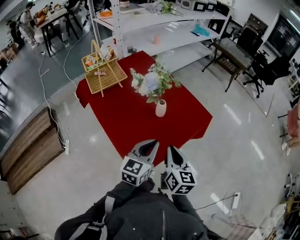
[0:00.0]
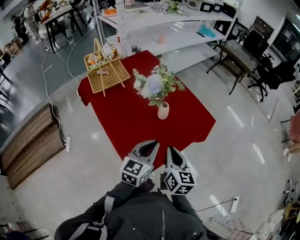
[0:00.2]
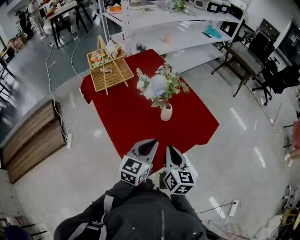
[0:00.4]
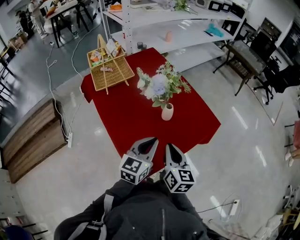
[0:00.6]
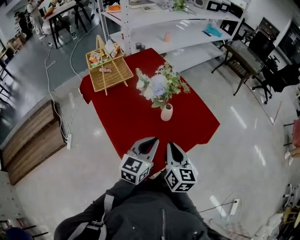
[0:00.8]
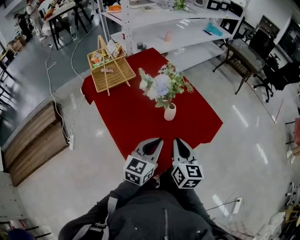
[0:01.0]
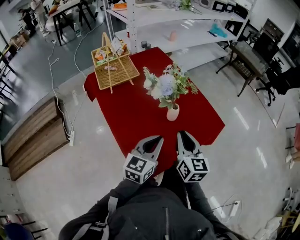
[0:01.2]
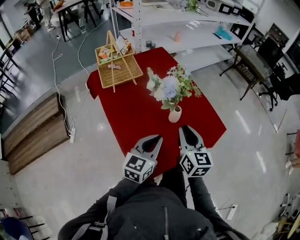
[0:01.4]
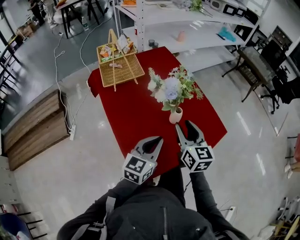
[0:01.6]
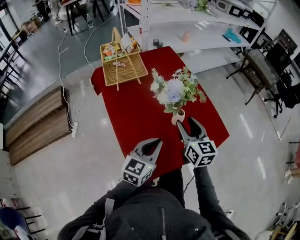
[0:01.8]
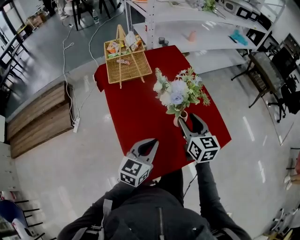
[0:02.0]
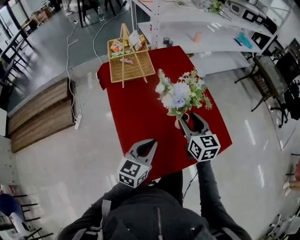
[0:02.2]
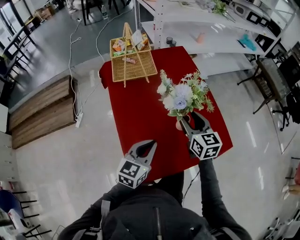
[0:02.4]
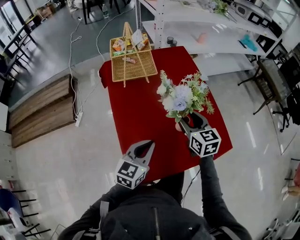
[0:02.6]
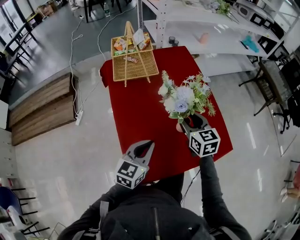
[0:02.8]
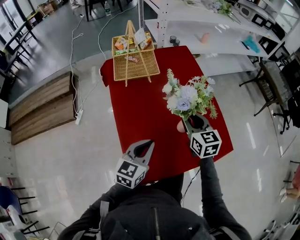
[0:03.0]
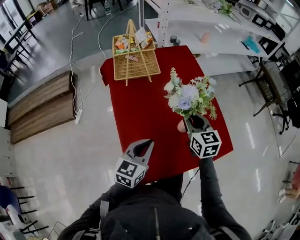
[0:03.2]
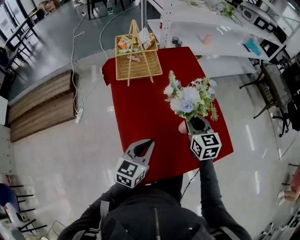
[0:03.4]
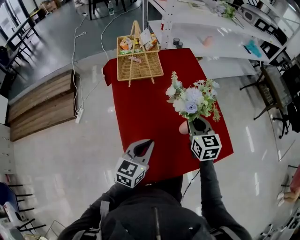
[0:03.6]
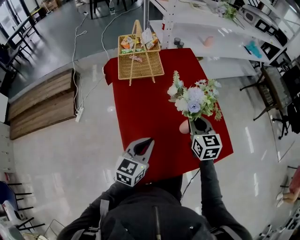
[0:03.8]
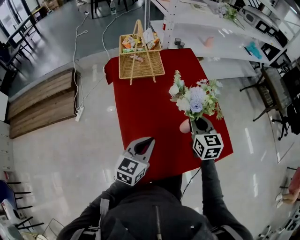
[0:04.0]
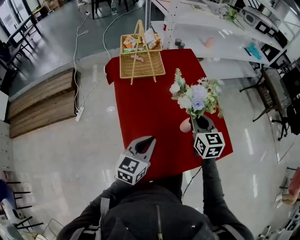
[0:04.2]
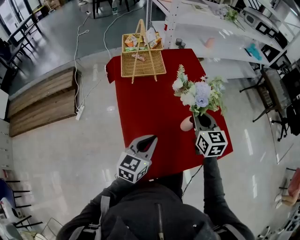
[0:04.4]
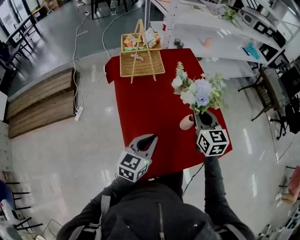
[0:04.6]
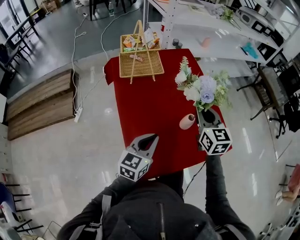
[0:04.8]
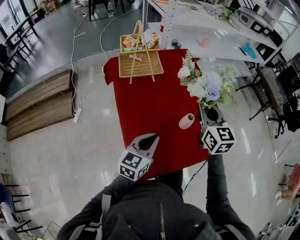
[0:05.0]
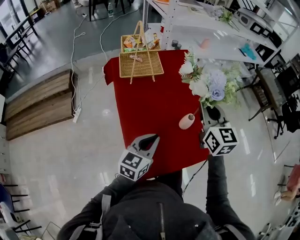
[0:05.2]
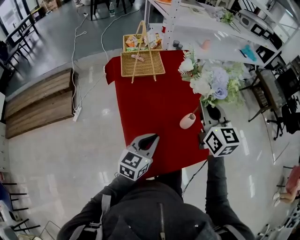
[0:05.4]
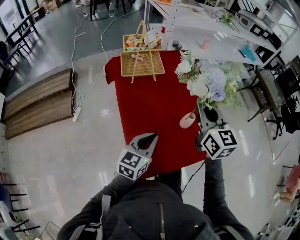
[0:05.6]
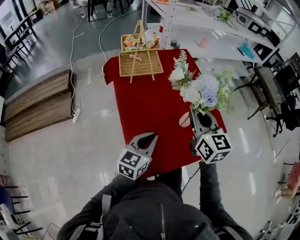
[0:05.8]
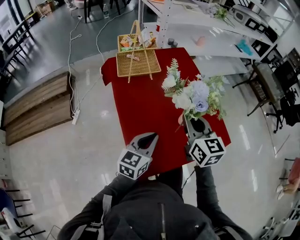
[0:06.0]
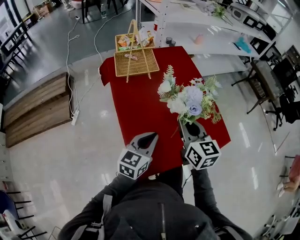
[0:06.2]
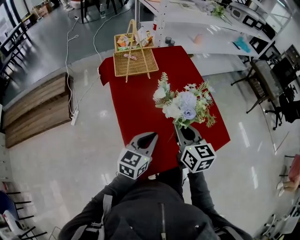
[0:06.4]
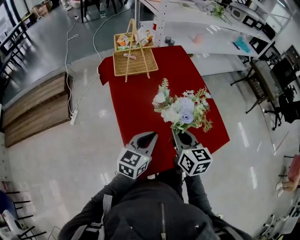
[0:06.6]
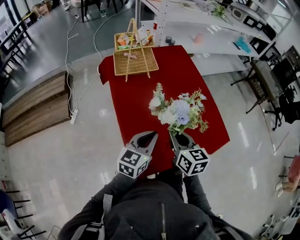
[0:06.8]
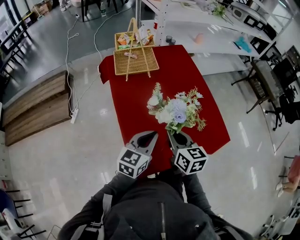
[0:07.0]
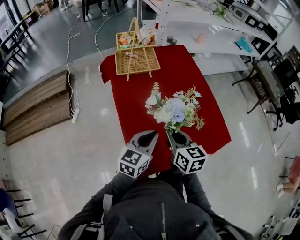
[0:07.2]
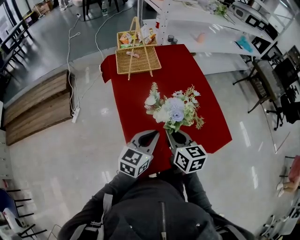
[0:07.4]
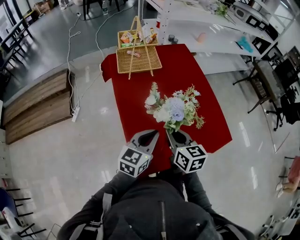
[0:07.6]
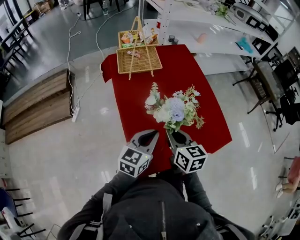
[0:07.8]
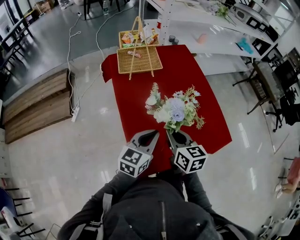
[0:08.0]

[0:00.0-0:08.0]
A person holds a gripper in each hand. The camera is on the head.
0:00.0 to 0:01.6: The left gripper heads forward, covering approximately 5 cm; the right gripper moves forward, roughly 15 cm, turns by approximately 20 degrees, and opens.
0:01.6 to 0:03.2: The left gripper heads to the left, covering approximately 5 cm, while the right gripper shifts some 10 cm forward, and turns by some 20 degrees.
0:03.2 to 0:04.8: The right gripper is displaced upward by roughly 5 cm.
0:04.8 to 0:06.4: The right gripper heads backward and to the left, covering about 10 cm, and goes upward and returns, some 5 cm each way.
0:06.4 to 0:08.0: The right gripper moves approximately 5 cm.

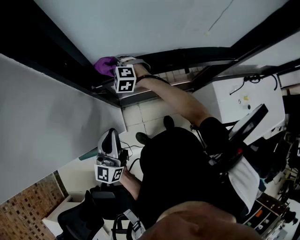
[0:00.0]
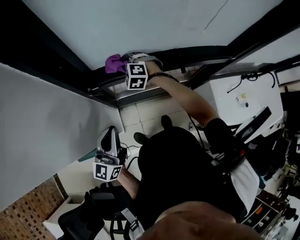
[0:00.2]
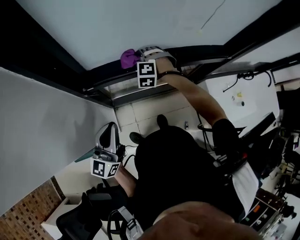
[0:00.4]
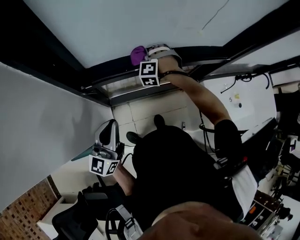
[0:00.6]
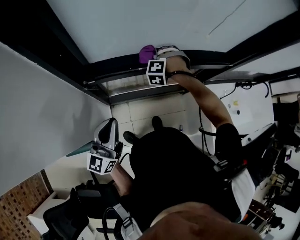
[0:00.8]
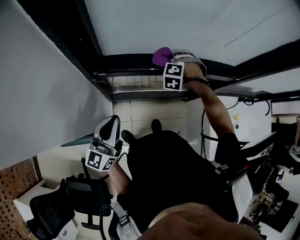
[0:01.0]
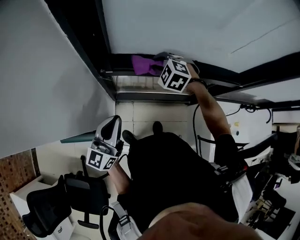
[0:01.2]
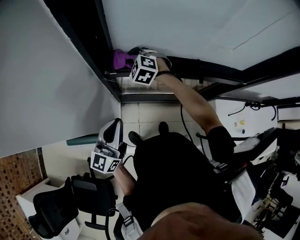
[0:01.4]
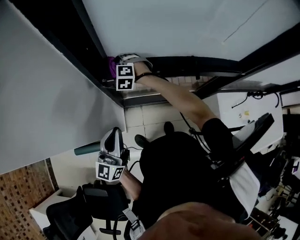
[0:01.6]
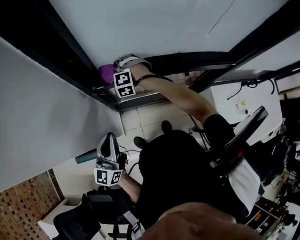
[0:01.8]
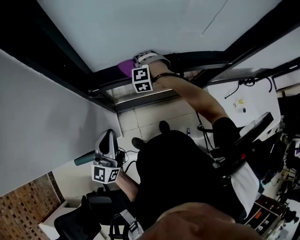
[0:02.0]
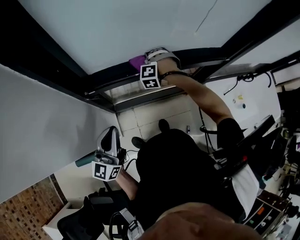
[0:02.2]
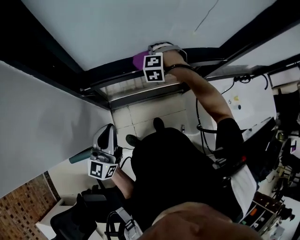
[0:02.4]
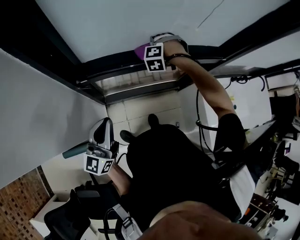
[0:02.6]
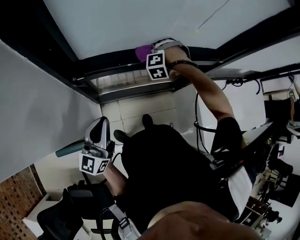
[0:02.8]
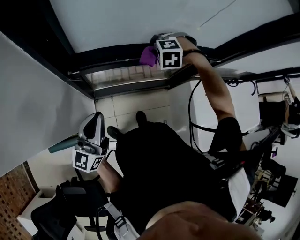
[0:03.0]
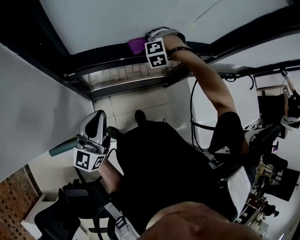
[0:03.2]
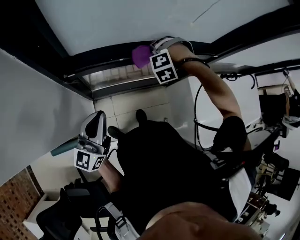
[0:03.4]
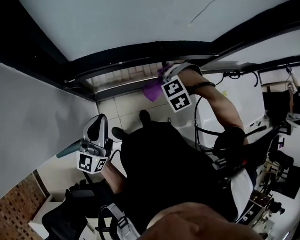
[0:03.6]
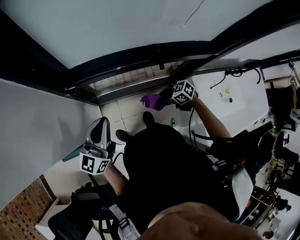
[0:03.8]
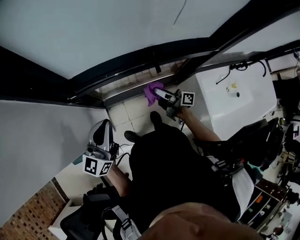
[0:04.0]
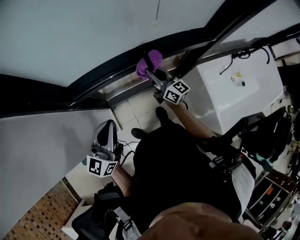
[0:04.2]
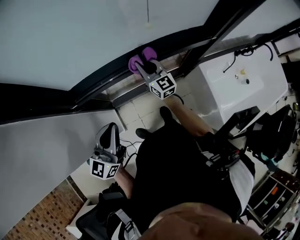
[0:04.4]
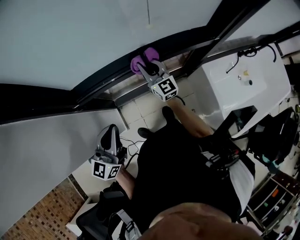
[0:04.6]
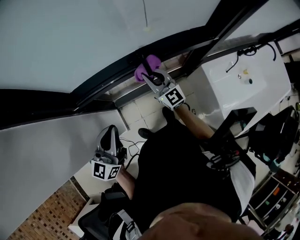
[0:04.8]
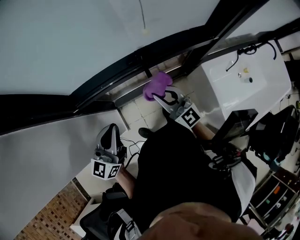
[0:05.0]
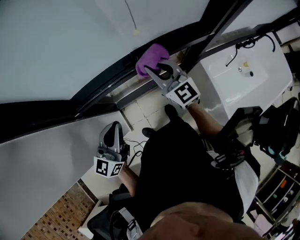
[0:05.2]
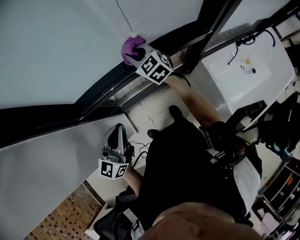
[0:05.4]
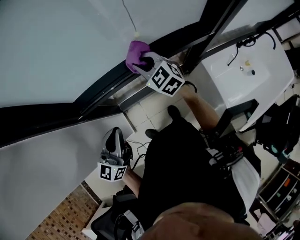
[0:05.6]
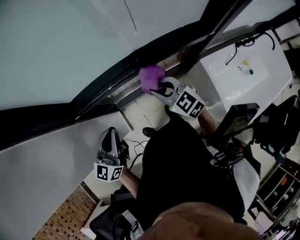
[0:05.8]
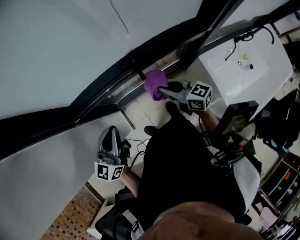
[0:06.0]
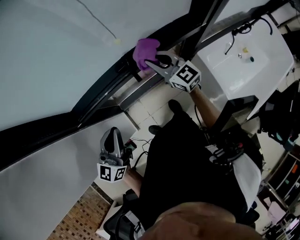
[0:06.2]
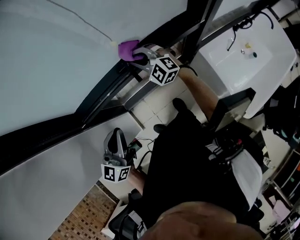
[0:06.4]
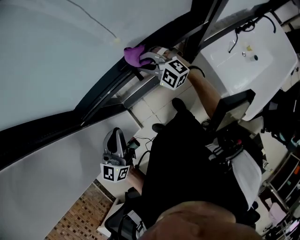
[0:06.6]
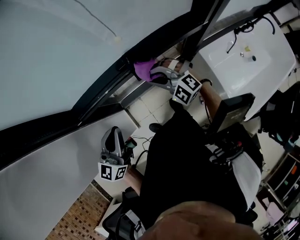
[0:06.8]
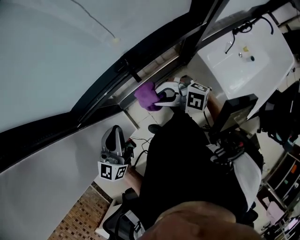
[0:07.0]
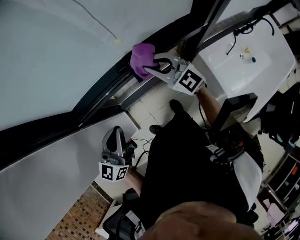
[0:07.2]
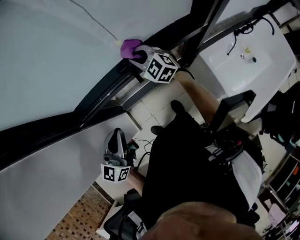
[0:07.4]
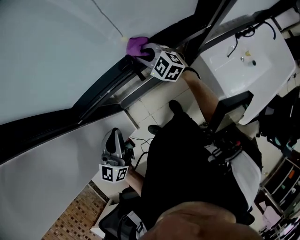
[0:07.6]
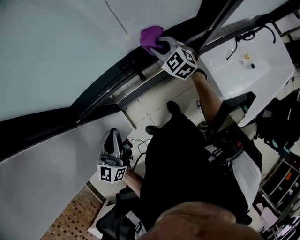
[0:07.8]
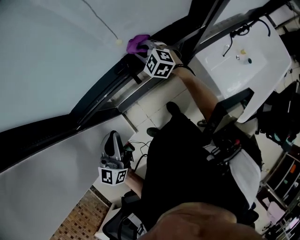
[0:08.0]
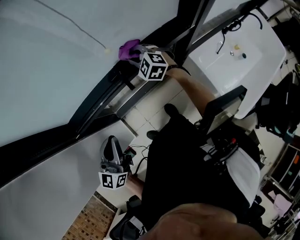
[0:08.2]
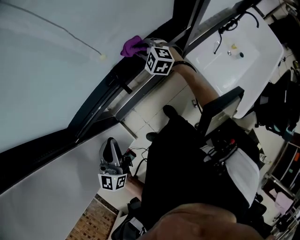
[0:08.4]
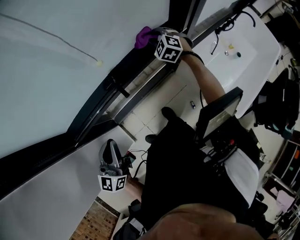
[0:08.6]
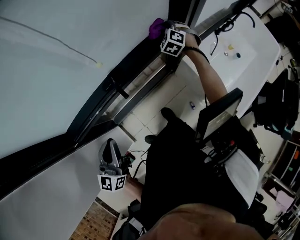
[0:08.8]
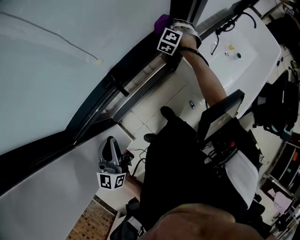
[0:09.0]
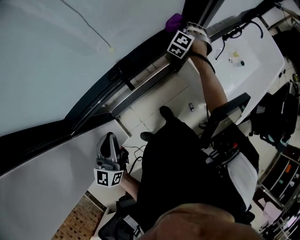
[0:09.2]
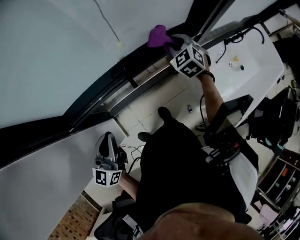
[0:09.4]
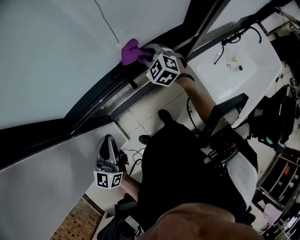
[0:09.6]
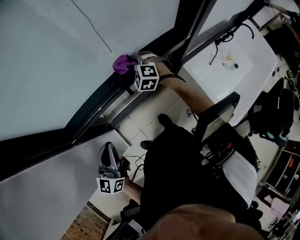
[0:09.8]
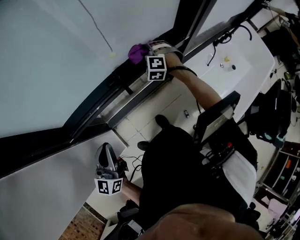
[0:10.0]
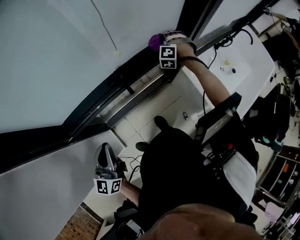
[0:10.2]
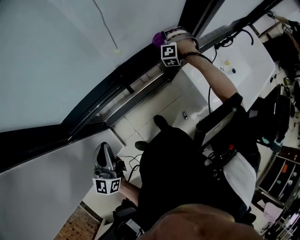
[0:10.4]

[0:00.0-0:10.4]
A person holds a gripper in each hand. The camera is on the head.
0:01.4 to 0:03.0: The left gripper moves approximately 5 cm, while the right gripper ends up about 25 cm from where it was, and changes its angle by some 40 degrees.
0:03.0 to 0:04.4: The left gripper ends up roughly 10 cm from where it was, while the right gripper goes downward and returns, approximately 10 cm each way, and tips its fingers upward by roughly 70 degrees.
0:04.4 to 0:06.0: The right gripper goes forward and backward, roughly 20 cm each way, reversing 2 times, and rotates approximately 30 degrees.
0:06.0 to 0:07.4: The right gripper moves forward and backward over roughly 20 cm, changing direction 2 times, and rolls counterclockwise, seen from behind, by approximately 50 degrees.
0:07.4 to 0:09.0: The right gripper ends up some 35 cm from where it was, and rotates some 70 degrees.
0:09.0 to 0:10.4: The right gripper reaches roughly 5 cm upward, then returns, and rotates around the line of its fingers by about 40 degrees, counterclockwise from behind, while the left gripper moves about 5 cm.

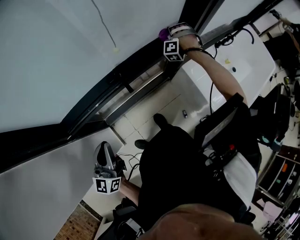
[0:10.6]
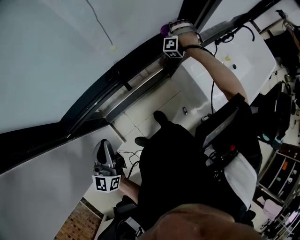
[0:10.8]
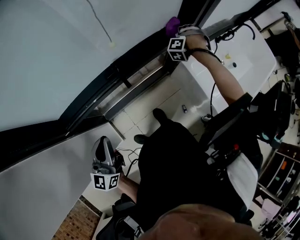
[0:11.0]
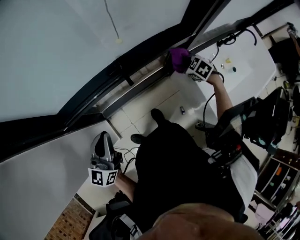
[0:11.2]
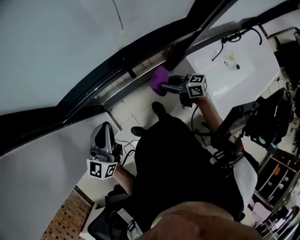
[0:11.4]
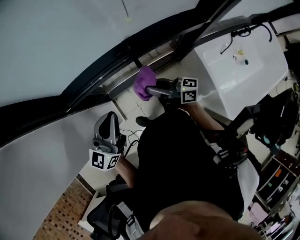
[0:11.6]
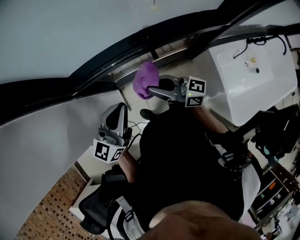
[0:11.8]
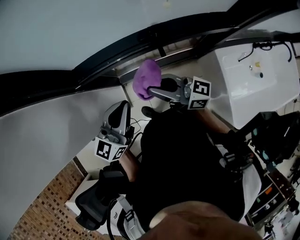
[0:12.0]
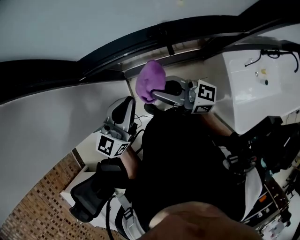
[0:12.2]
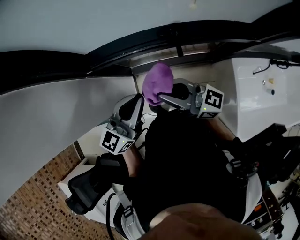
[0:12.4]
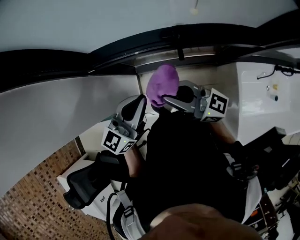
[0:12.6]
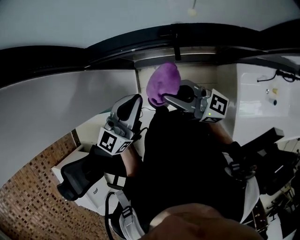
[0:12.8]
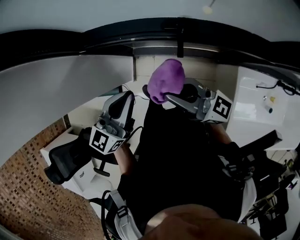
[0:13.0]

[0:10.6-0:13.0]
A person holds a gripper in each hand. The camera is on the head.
0:10.6 to 0:11.8: The right gripper shifts by about 50 cm, and angles its fingers upward, by roughly 50 degrees.
0:11.8 to 0:13.0: The right gripper ends up roughly 5 cm from where it was.

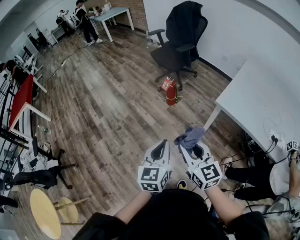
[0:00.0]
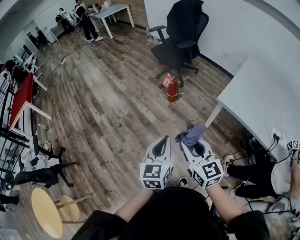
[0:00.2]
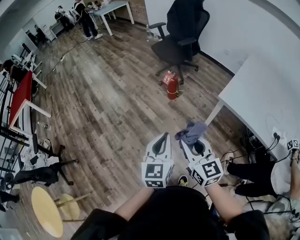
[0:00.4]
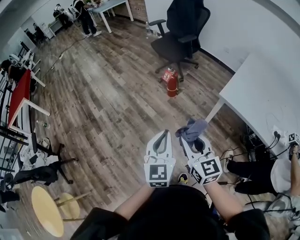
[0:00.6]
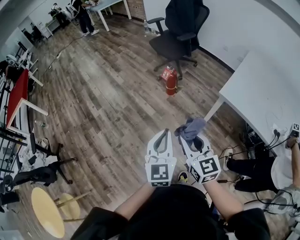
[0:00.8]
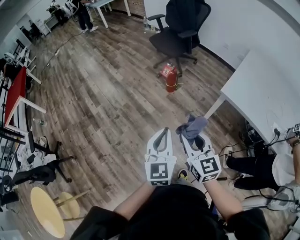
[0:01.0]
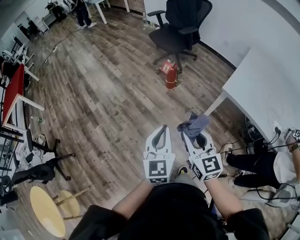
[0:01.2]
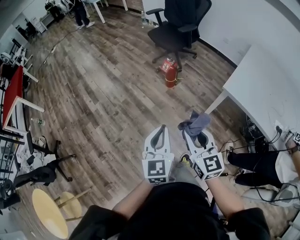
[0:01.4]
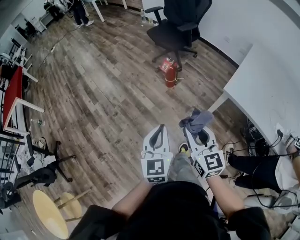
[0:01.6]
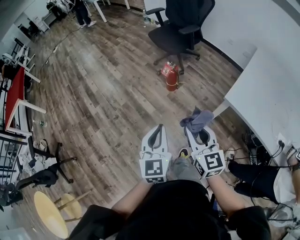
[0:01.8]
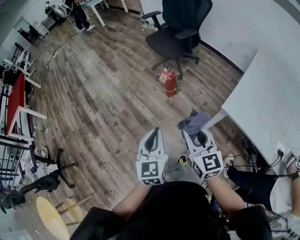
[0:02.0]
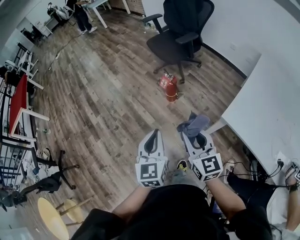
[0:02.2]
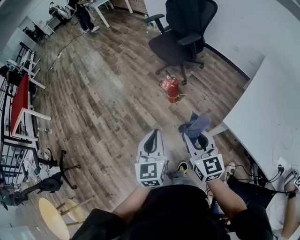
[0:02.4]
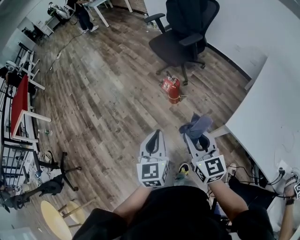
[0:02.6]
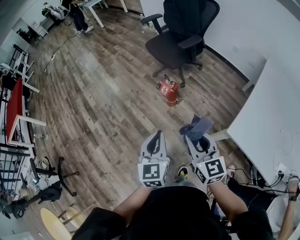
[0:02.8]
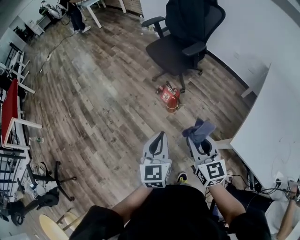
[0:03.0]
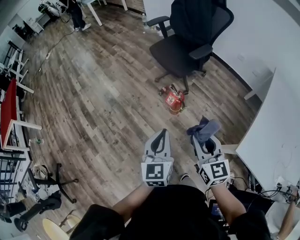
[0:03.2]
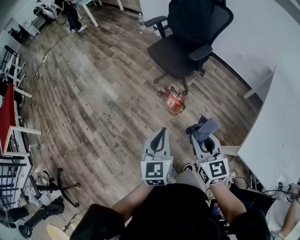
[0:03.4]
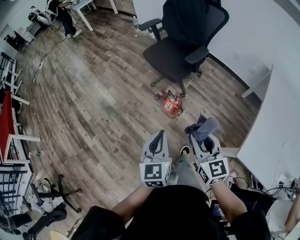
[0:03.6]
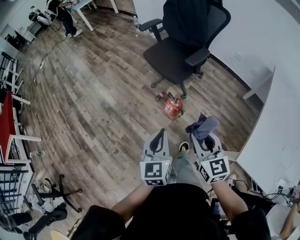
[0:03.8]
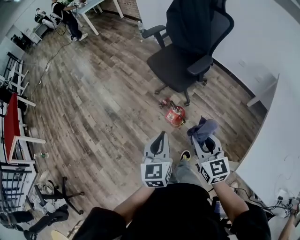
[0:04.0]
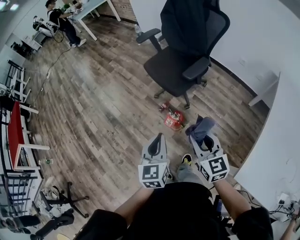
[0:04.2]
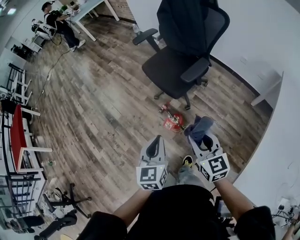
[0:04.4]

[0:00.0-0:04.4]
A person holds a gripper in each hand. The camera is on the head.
0:00.0 to 0:01.4: The right gripper shifts roughly 5 cm forward. The left gripper heads forward and to the left, covering approximately 10 cm.
0:01.4 to 0:03.0: The two grippers go some 35 cm forward.
0:03.0 to 0:04.4: The two grippers go about 30 cm forward.
